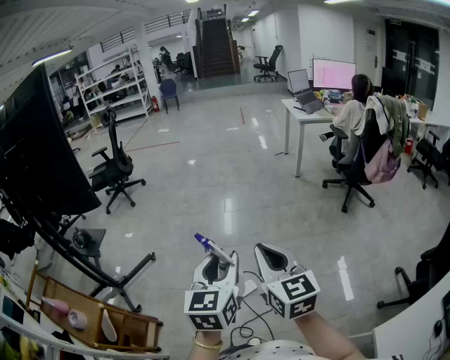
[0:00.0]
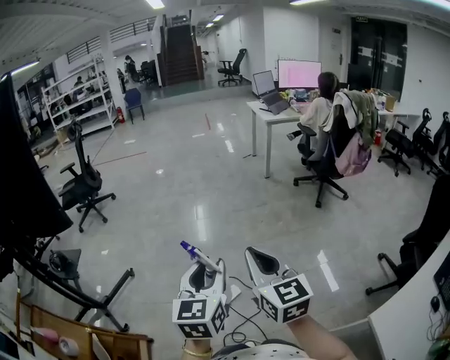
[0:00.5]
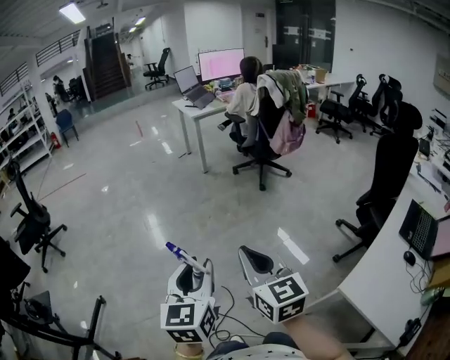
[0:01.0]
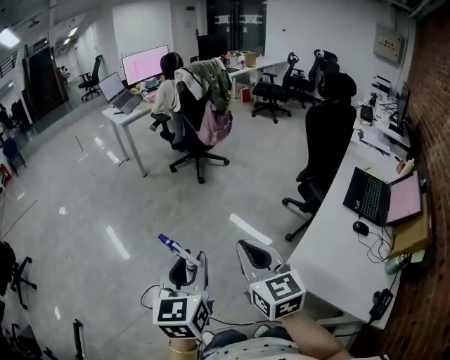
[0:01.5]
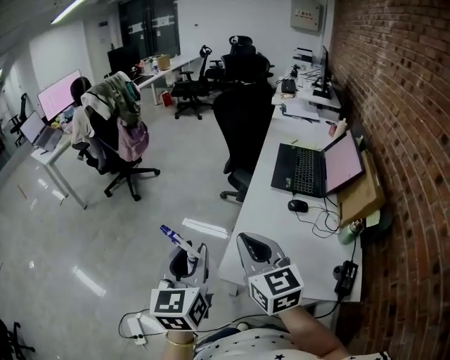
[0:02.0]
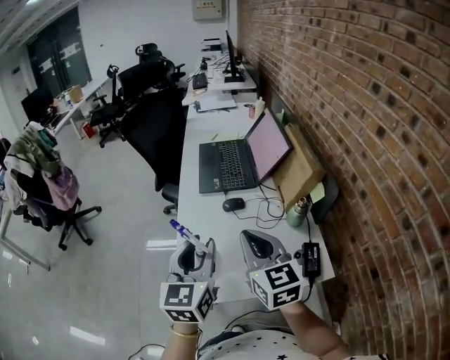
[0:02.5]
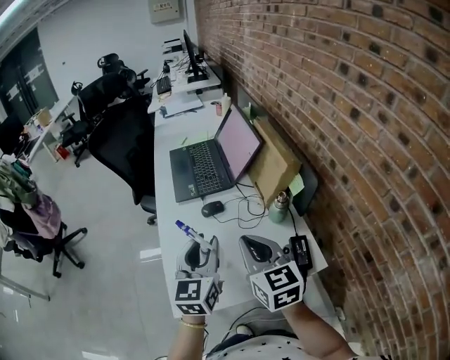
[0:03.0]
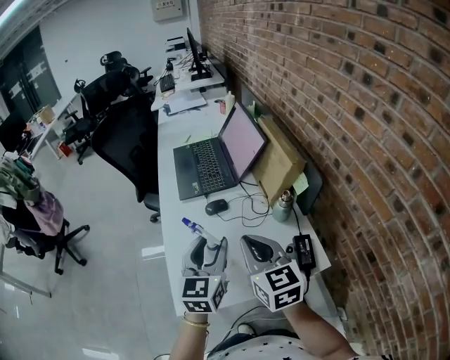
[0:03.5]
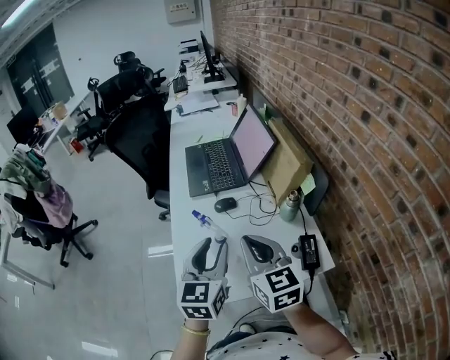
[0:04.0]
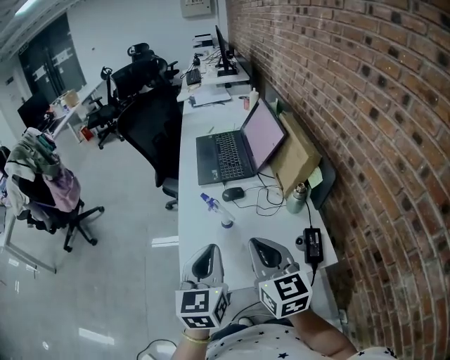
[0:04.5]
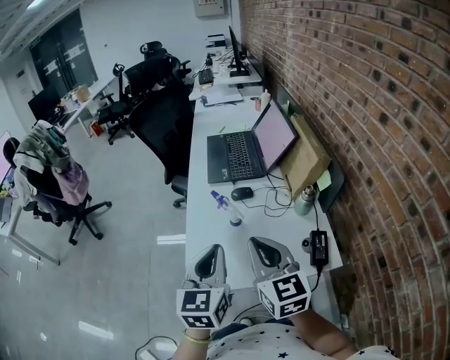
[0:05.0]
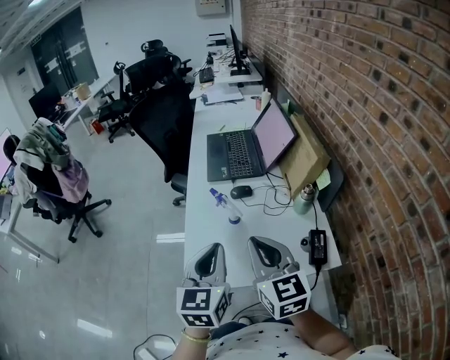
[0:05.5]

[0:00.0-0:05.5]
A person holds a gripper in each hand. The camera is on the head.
0:00.0 to 0:02.0: The pair of grippers is taken about 60 cm. The right gripper rotates roughly 70 degrees, while the left gripper rotates roughly 60 degrees.
0:02.0 to 0:03.5: The left gripper changes place by approximately 30 cm, and turns by some 40 degrees, while the right gripper moves about 25 cm, and swivels about 30 degrees.
0:03.5 to 0:05.5: The right gripper shifts approximately 5 cm backward. The left gripper heads backward and to the left, covering some 10 cm, and closes its fingers.

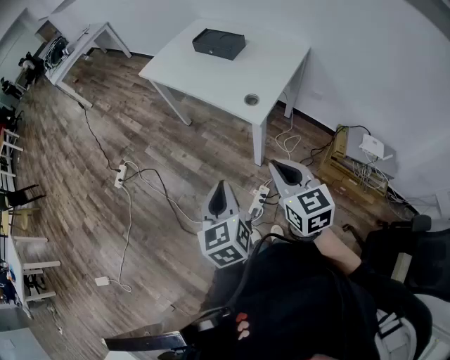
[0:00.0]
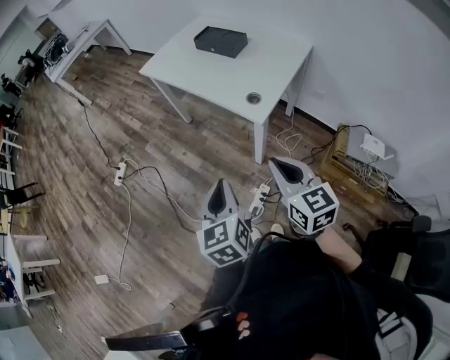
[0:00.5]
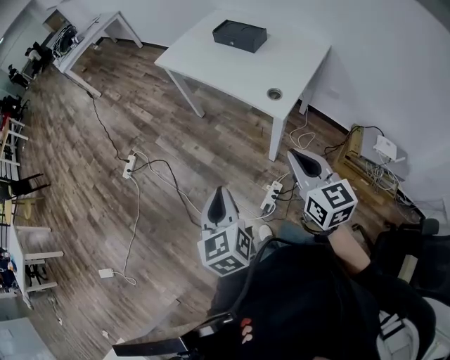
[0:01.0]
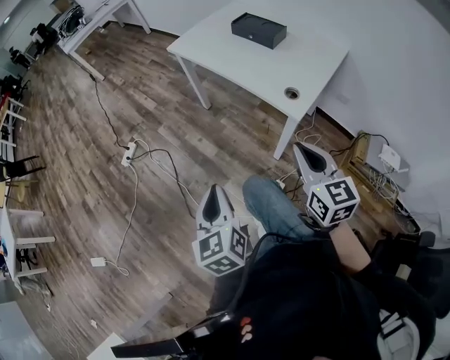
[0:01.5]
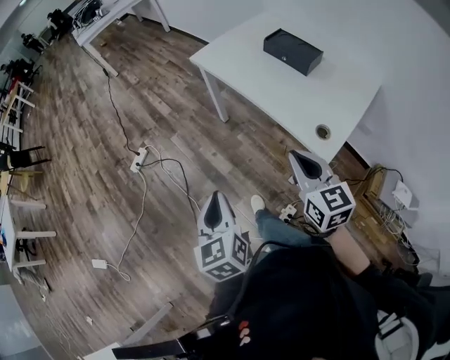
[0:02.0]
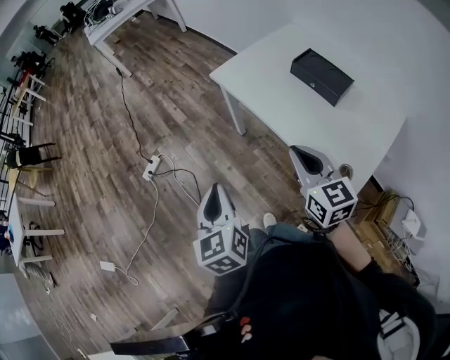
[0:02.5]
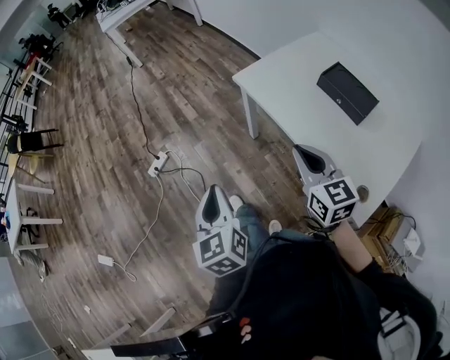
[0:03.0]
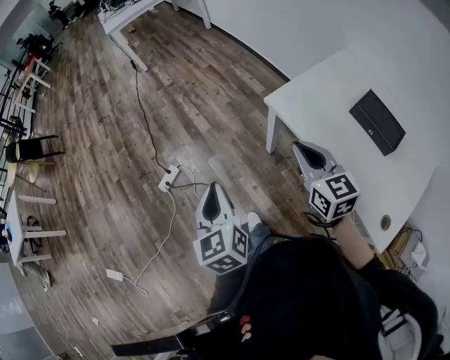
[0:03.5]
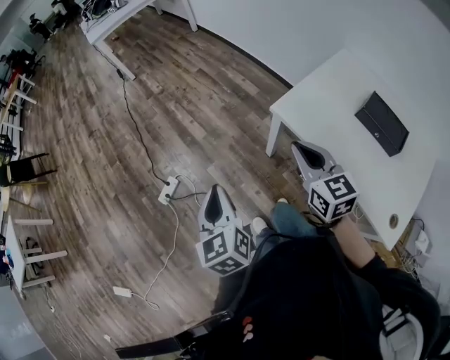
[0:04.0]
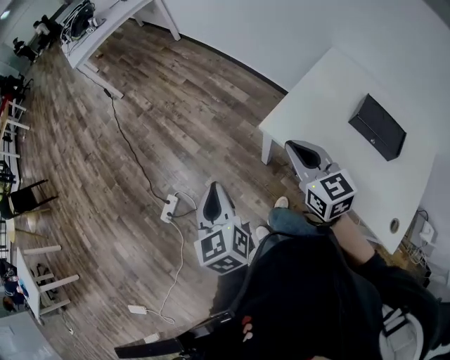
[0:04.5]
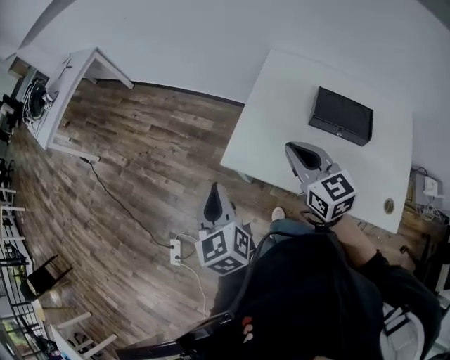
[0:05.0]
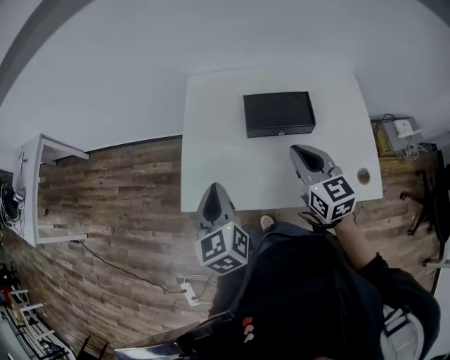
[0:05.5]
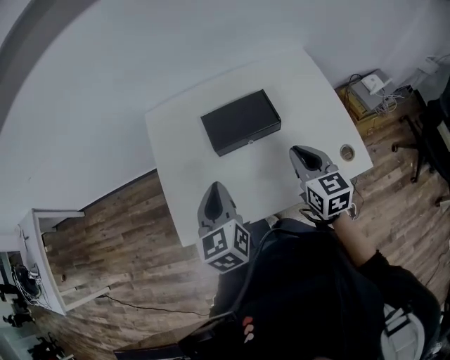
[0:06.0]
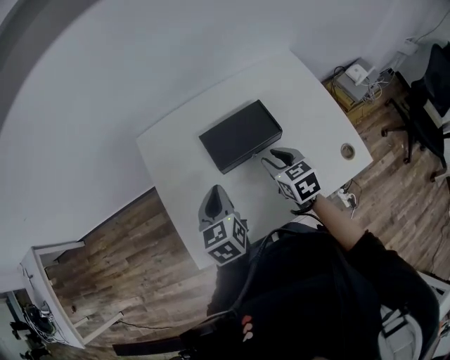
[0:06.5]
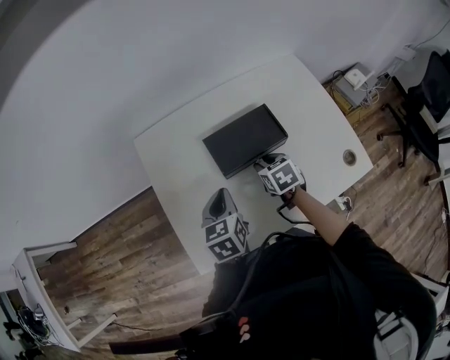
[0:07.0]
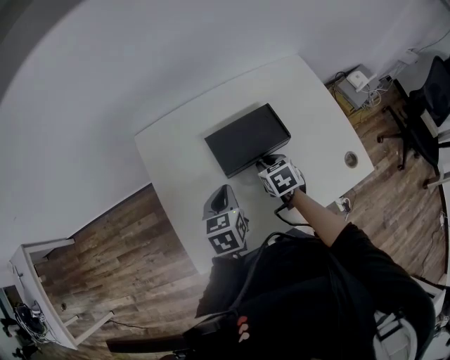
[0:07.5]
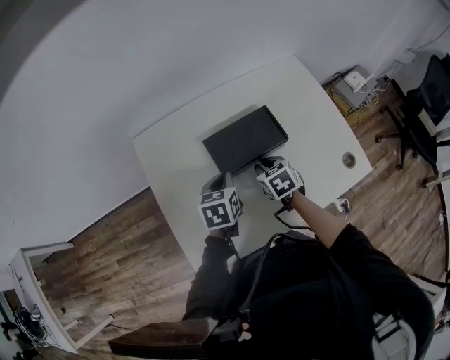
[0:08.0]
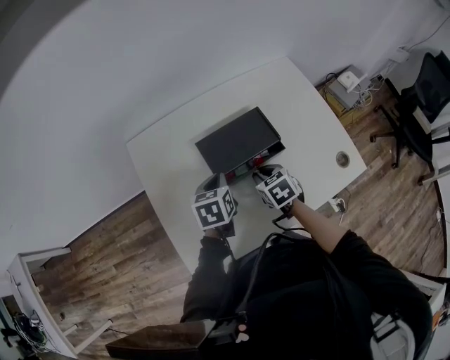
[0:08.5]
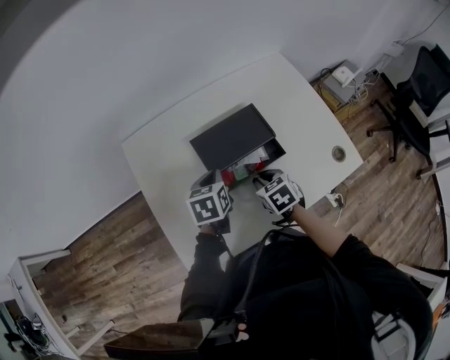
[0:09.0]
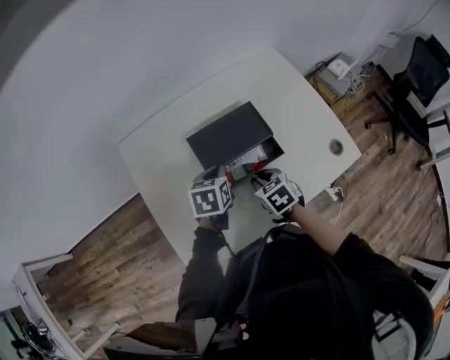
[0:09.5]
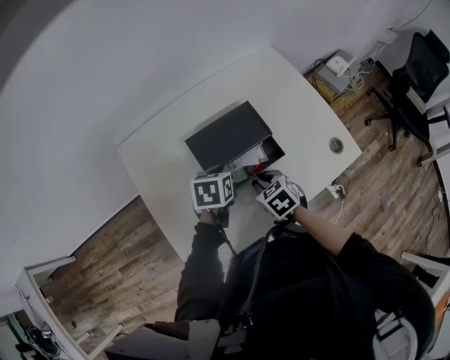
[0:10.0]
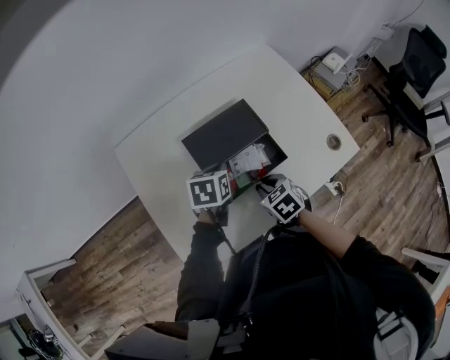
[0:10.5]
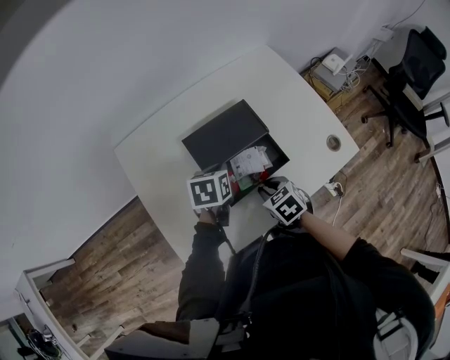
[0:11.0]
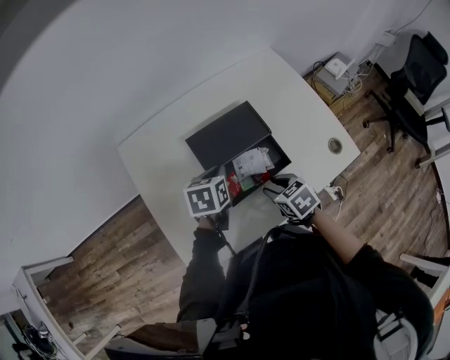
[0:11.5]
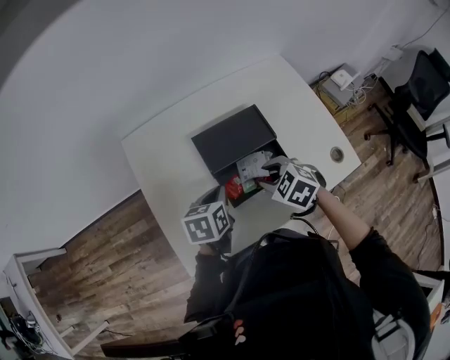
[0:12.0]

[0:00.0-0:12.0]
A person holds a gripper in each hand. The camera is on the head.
0:00.0 to 0:02.0: The right gripper travels forward and to the left by approximately 25 cm. Meanwhile the left gripper shifts approximately 25 cm to the left and forward.
0:02.0 to 0:04.0: The pair of grippers is taken forward, some 50 cm.
0:04.0 to 0:06.0: The two grippers travel together, about 50 cm. The right gripper rotates roughly 70 degrees. The left gripper swivels roughly 70 degrees.
0:06.0 to 0:08.0: The right gripper travels downward, forward and to the left by about 20 cm, and rotates some 30 degrees, while the left gripper shifts some 20 cm forward and downward, and rotates some 30 degrees.
0:08.0 to 0:10.0: The left gripper goes roughly 5 cm to the right, while the right gripper moves backward, approximately 10 cm.
0:10.0 to 0:12.0: The right gripper heads upward, covering roughly 5 cm, and changes its angle by approximately 30 degrees. Meanwhile the left gripper goes approximately 5 cm backward.

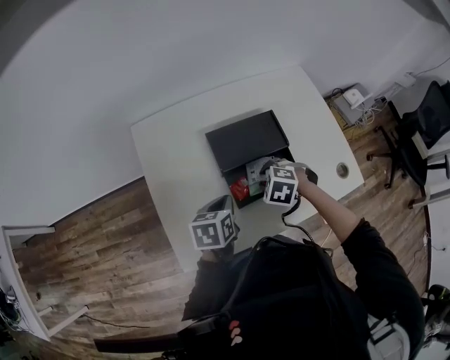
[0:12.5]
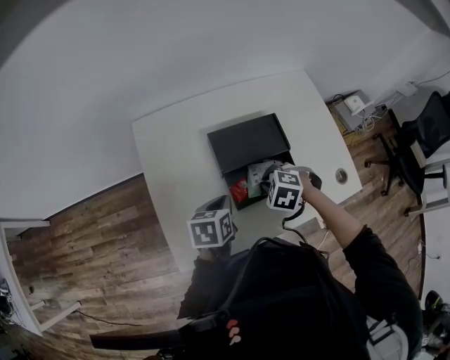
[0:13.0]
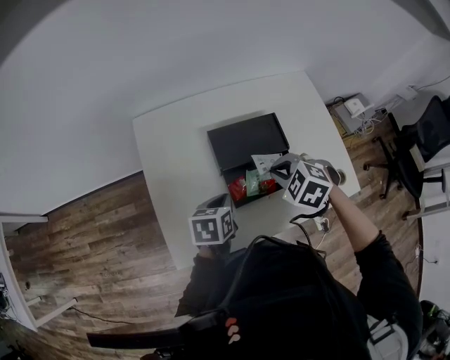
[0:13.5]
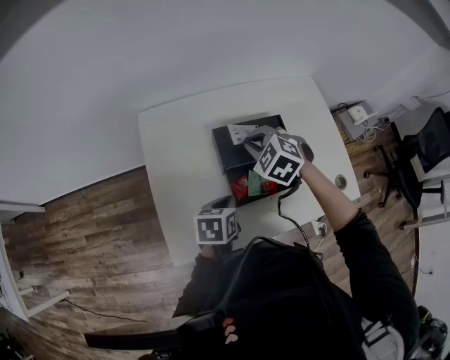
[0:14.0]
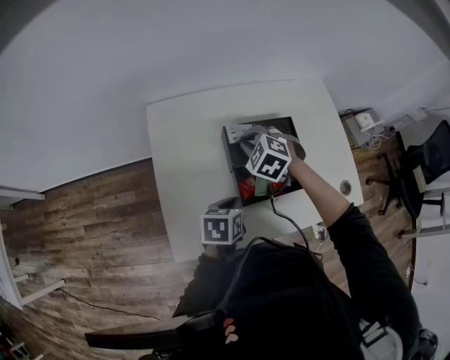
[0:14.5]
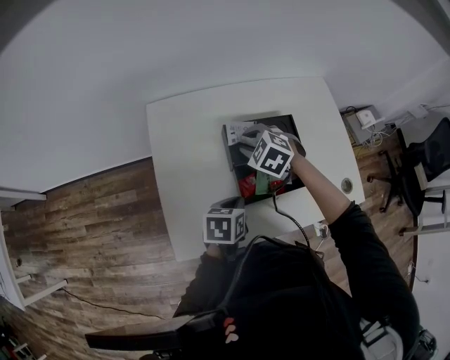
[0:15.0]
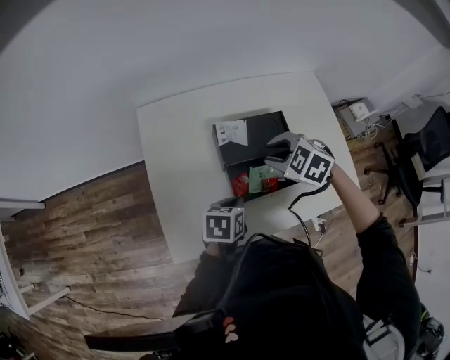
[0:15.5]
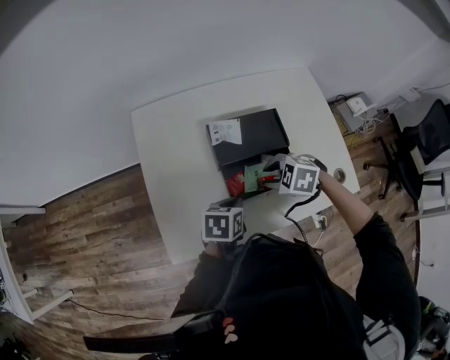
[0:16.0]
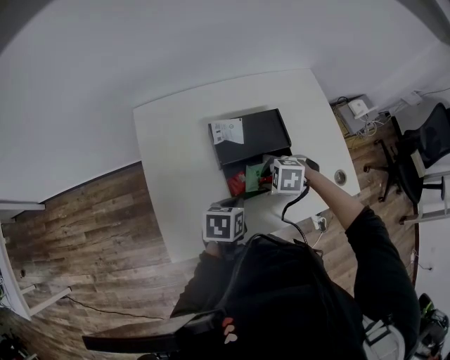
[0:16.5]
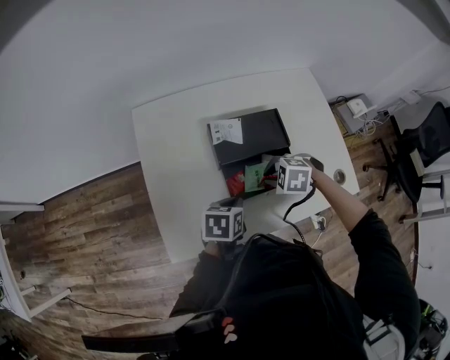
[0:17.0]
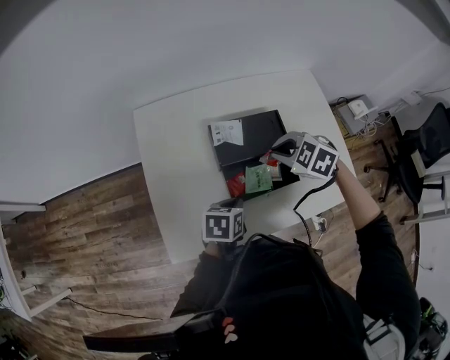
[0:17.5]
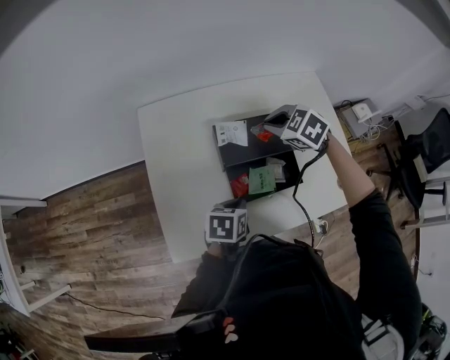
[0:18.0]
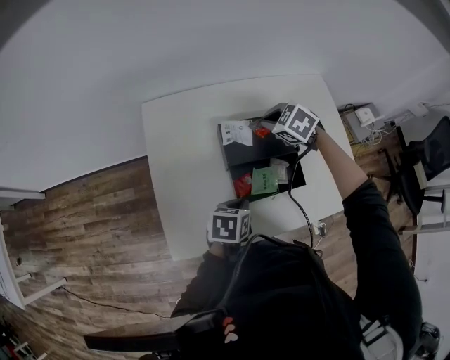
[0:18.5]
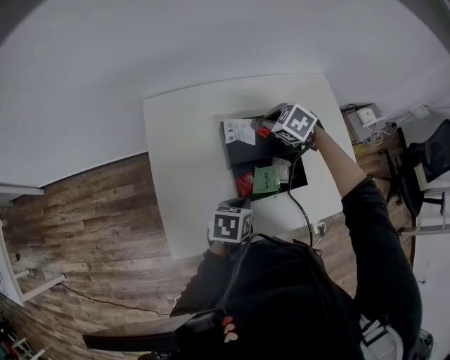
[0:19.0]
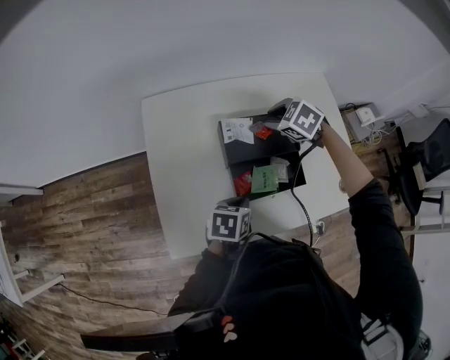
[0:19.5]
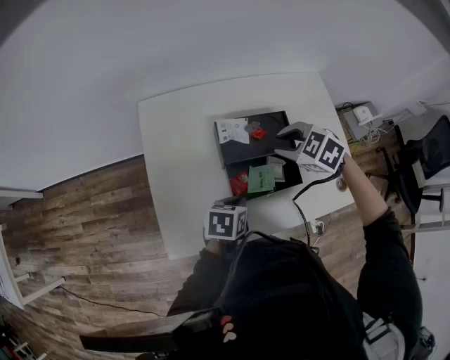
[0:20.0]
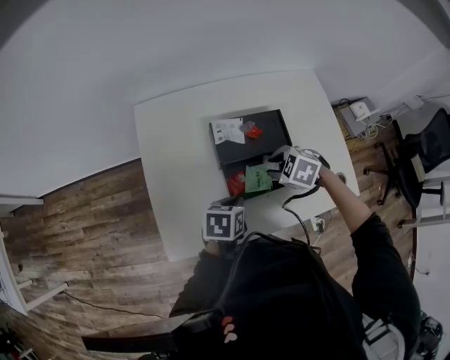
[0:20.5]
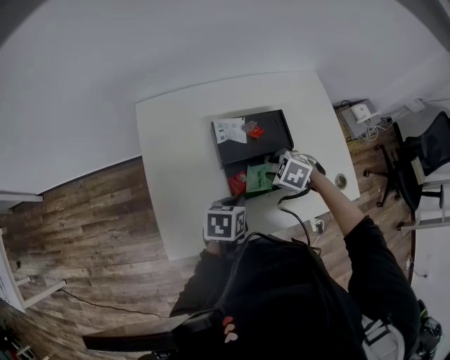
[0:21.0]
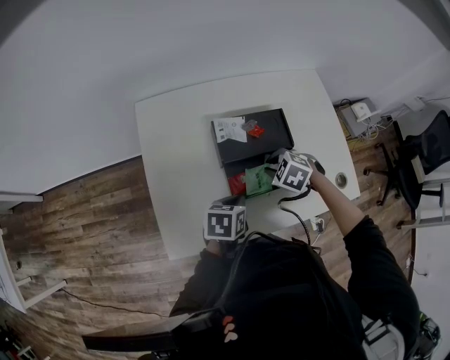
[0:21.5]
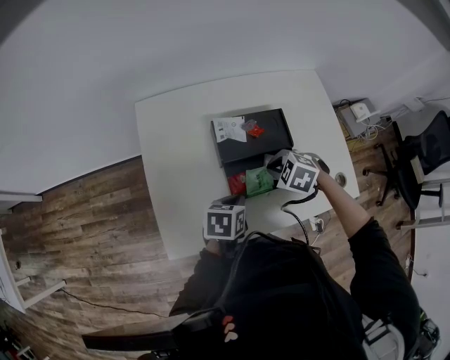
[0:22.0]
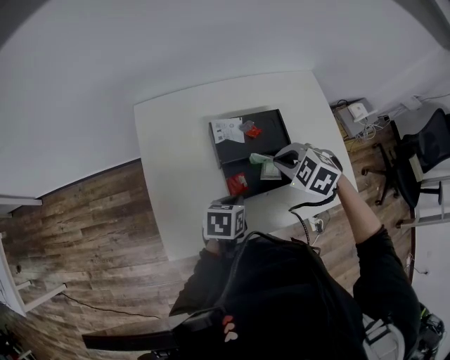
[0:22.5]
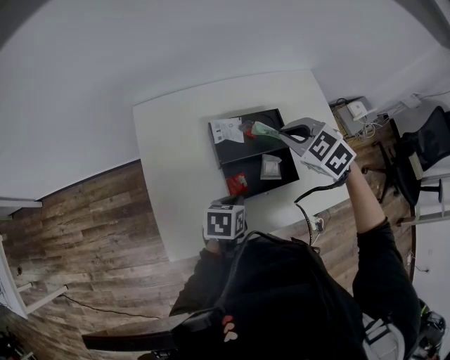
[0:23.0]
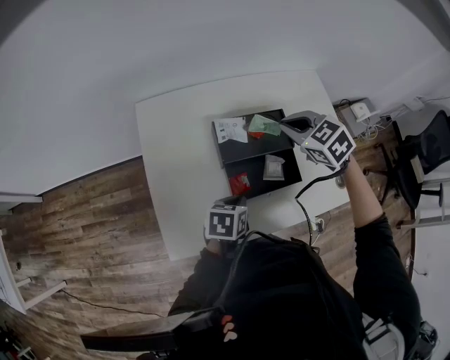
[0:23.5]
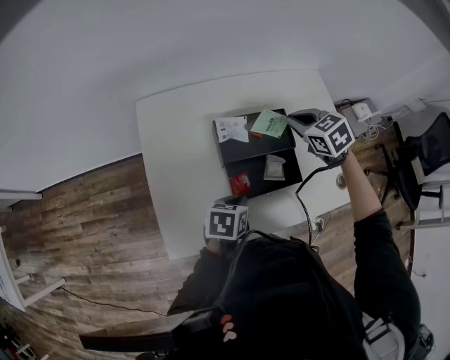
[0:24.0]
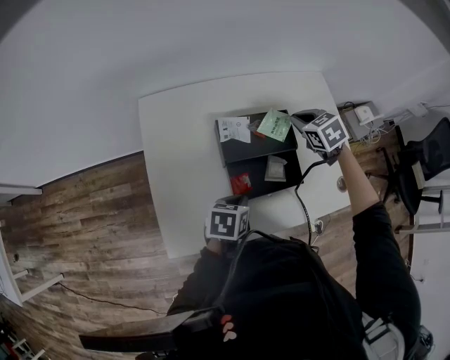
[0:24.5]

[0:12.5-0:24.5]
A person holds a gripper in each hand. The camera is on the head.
0:12.5 to 0:14.5: The right gripper changes place by roughly 15 cm, turns by approximately 20 degrees, and closes up.
0:14.5 to 0:16.5: The right gripper changes place by some 20 cm, and swivels some 30 degrees.
0:16.5 to 0:18.5: The right gripper ends up approximately 20 cm from where it was, and rotates some 30 degrees.
0:18.5 to 0:20.5: The right gripper goes some 15 cm backward, and opens up.
0:20.5 to 0:22.5: The right gripper goes about 5 cm upward, and closes.
0:22.5 to 0:24.5: The right gripper heads forward, covering approximately 15 cm, and rotates about 30 degrees.
